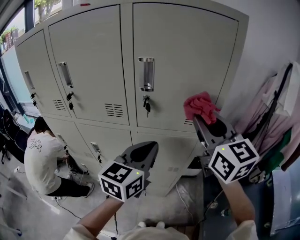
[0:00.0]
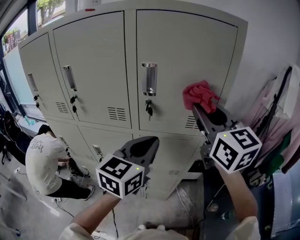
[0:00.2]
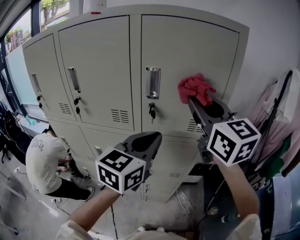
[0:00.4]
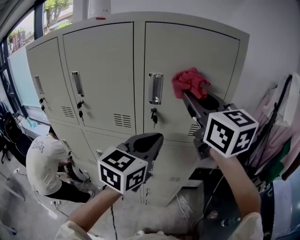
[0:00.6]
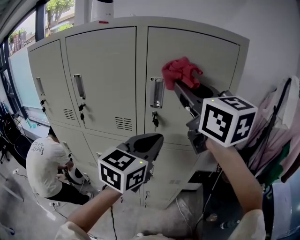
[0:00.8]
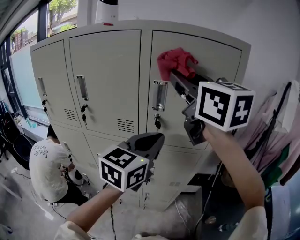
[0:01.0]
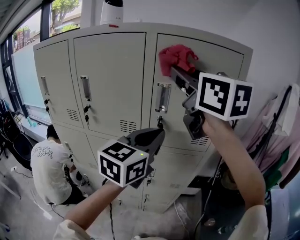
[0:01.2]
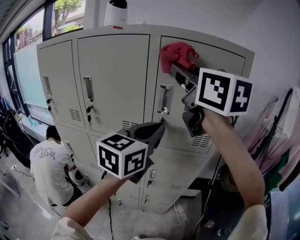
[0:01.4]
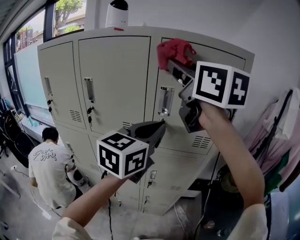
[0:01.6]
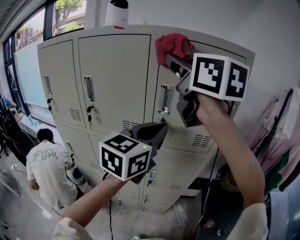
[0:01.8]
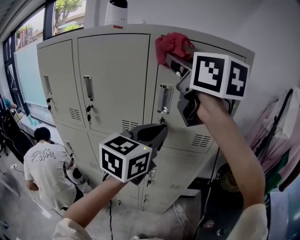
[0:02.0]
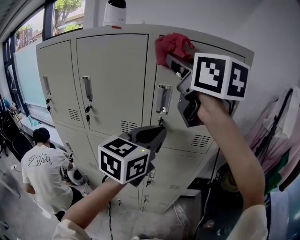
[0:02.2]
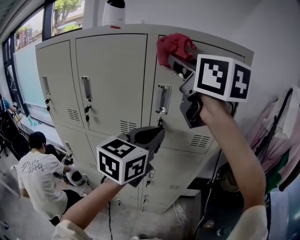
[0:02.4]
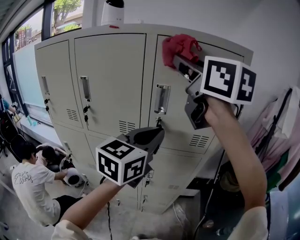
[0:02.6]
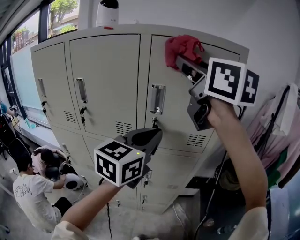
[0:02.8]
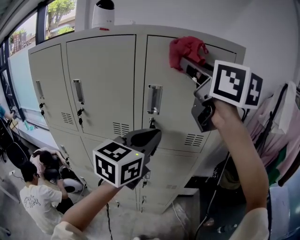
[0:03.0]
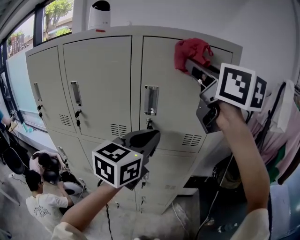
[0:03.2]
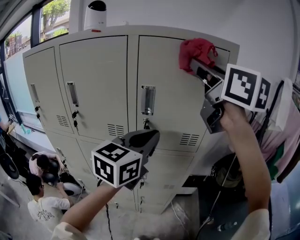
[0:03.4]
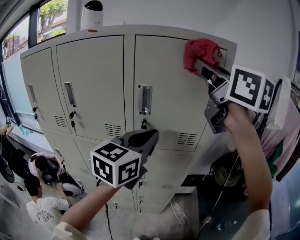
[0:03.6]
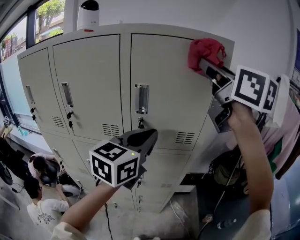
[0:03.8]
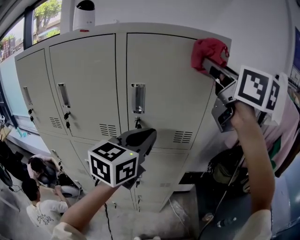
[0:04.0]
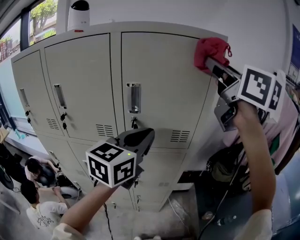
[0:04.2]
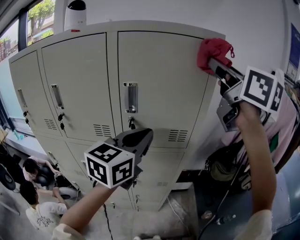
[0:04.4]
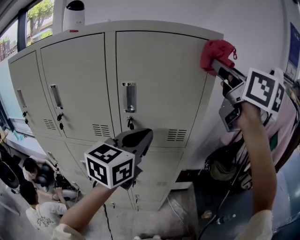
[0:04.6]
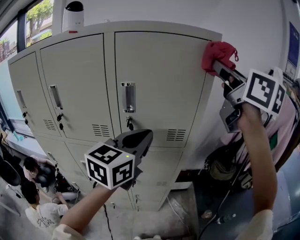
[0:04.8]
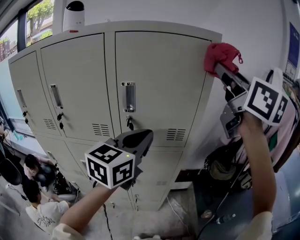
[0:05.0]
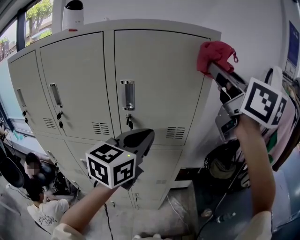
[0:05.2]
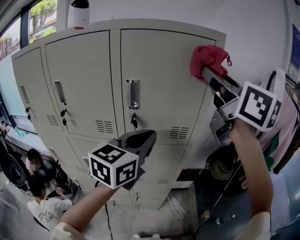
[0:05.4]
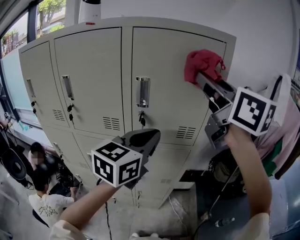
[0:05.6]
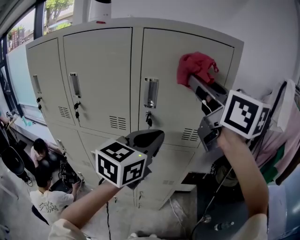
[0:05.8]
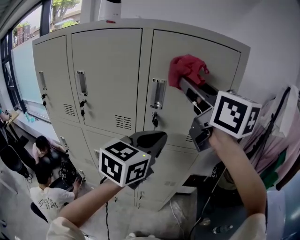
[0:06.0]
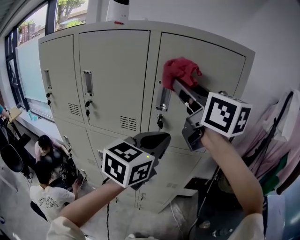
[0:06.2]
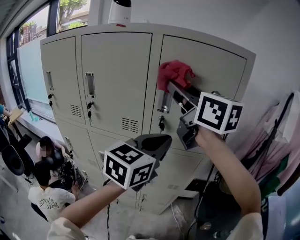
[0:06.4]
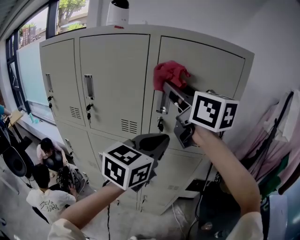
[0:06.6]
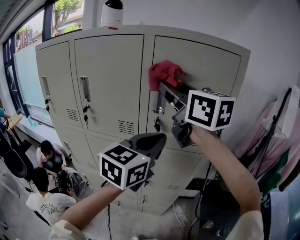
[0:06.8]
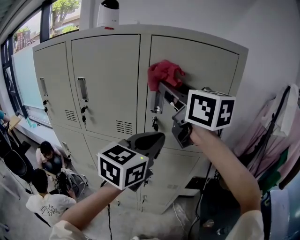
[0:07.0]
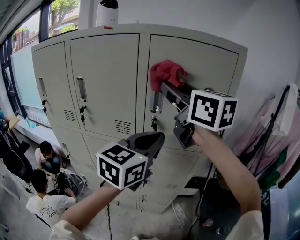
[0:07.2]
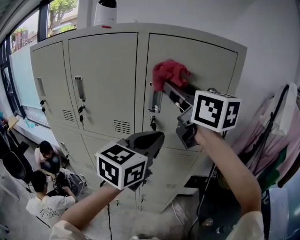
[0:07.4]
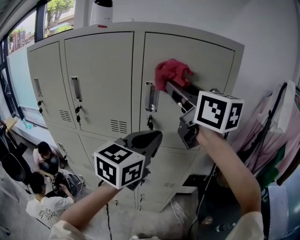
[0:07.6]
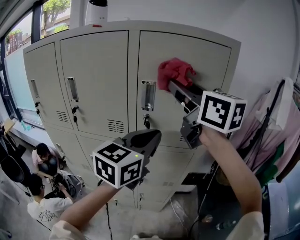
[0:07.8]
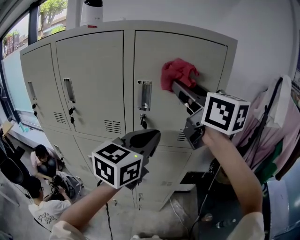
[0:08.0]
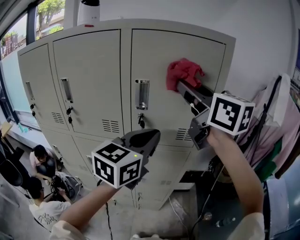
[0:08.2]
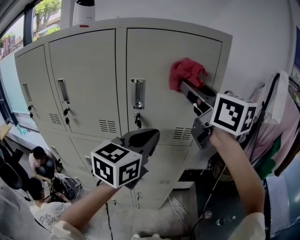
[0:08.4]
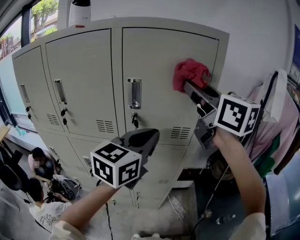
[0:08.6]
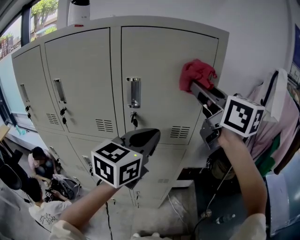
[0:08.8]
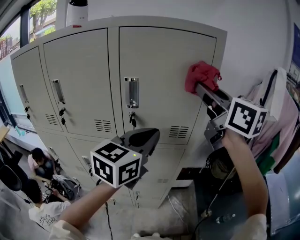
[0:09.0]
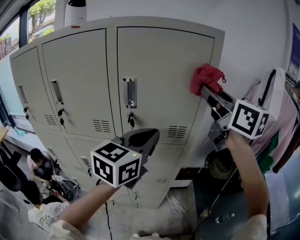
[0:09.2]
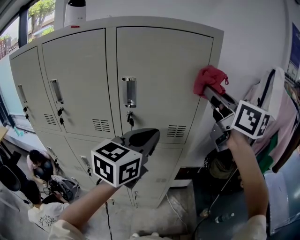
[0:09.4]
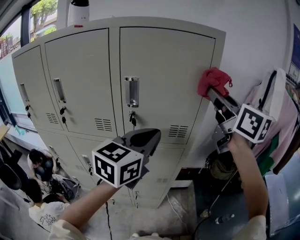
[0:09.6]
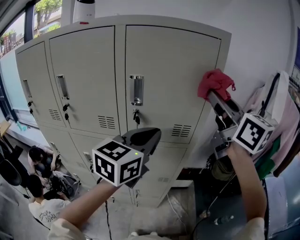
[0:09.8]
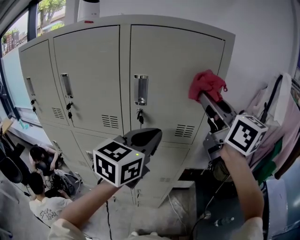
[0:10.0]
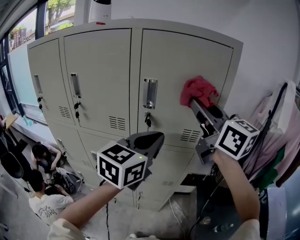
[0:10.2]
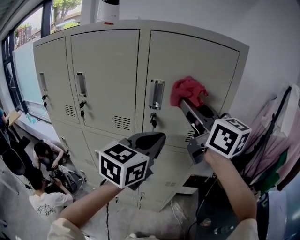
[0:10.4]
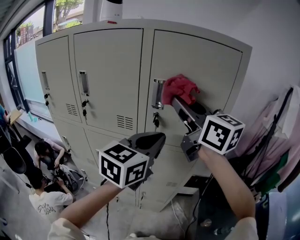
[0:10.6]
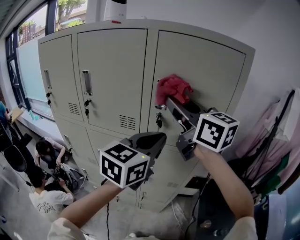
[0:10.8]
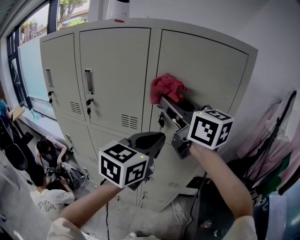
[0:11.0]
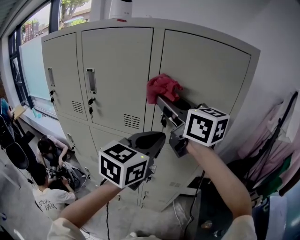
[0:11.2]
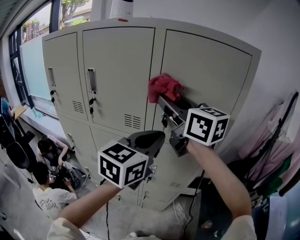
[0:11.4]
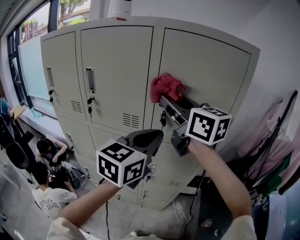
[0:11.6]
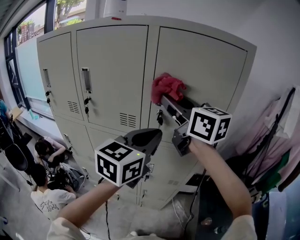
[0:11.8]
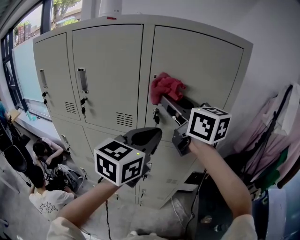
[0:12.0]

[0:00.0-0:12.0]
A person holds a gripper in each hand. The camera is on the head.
0:00.0 to 0:01.6: The left gripper is displaced upward by some 15 cm. Meanwhile the right gripper moves upward and to the left, approximately 25 cm.
0:01.6 to 0:03.0: The right gripper moves to the right, some 5 cm.
0:03.0 to 0:04.4: The right gripper is displaced to the right by roughly 15 cm.
0:04.4 to 0:06.0: The right gripper heads to the left, covering some 15 cm, and swivels approximately 20 degrees.
0:07.6 to 0:09.0: The right gripper goes roughly 15 cm to the right.
0:09.0 to 0:10.4: The right gripper travels to the left by roughly 10 cm.
0:10.4 to 0:12.0: The right gripper goes approximately 5 cm to the left.

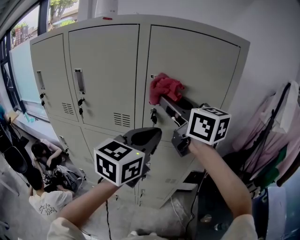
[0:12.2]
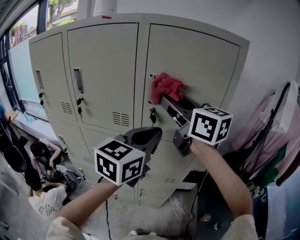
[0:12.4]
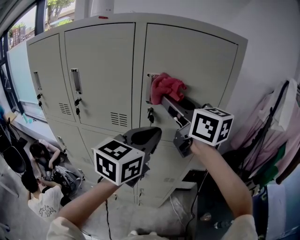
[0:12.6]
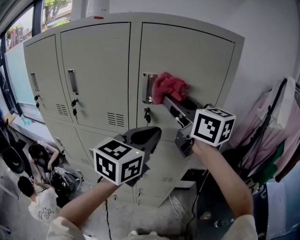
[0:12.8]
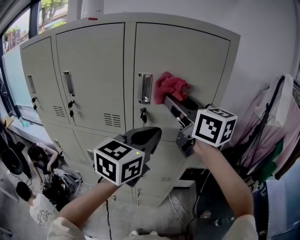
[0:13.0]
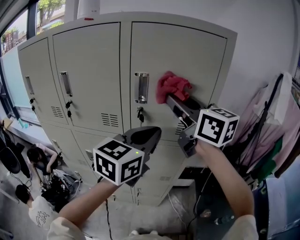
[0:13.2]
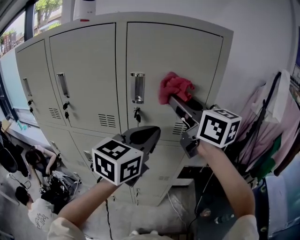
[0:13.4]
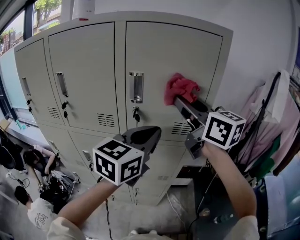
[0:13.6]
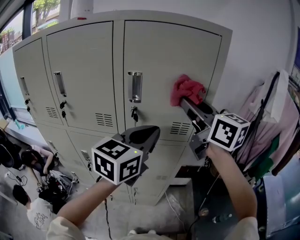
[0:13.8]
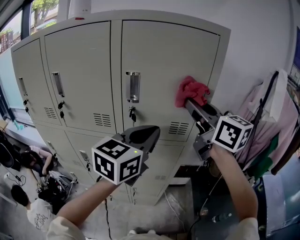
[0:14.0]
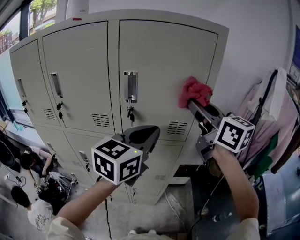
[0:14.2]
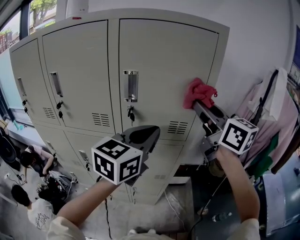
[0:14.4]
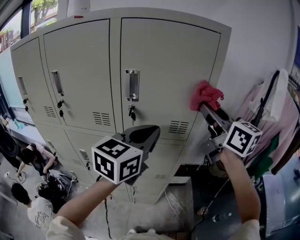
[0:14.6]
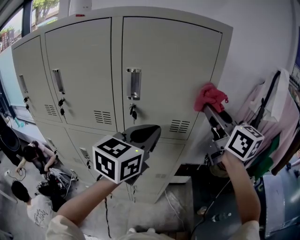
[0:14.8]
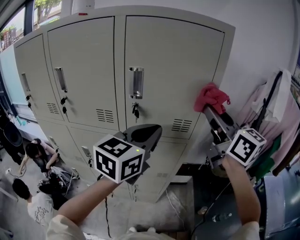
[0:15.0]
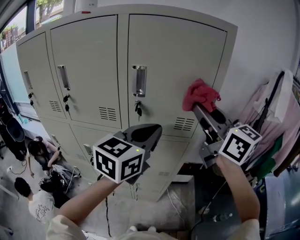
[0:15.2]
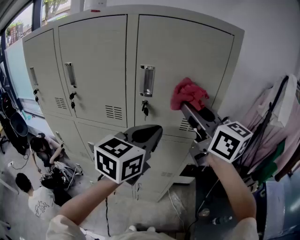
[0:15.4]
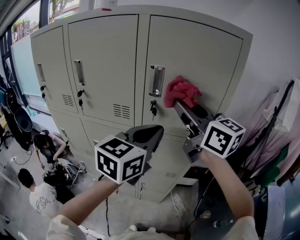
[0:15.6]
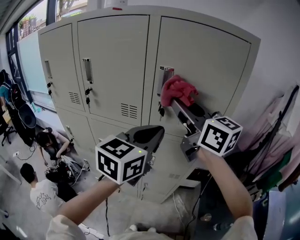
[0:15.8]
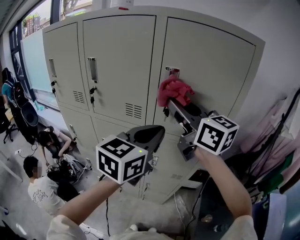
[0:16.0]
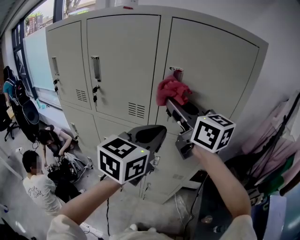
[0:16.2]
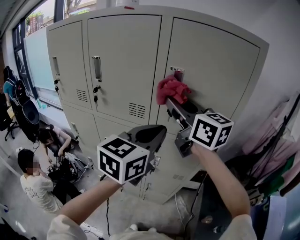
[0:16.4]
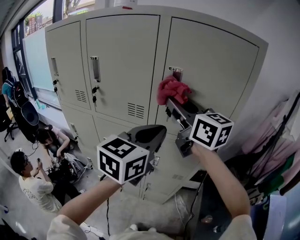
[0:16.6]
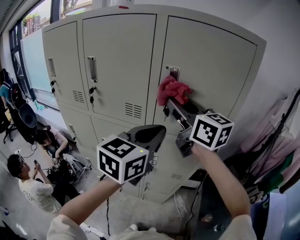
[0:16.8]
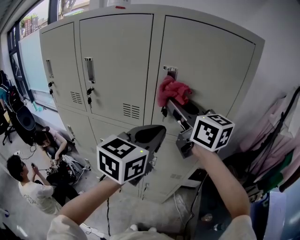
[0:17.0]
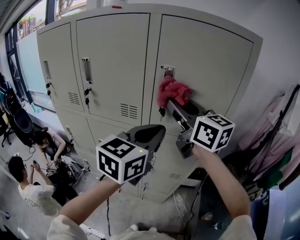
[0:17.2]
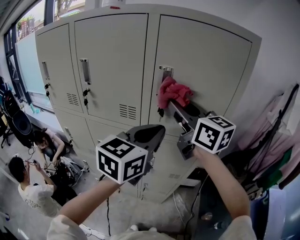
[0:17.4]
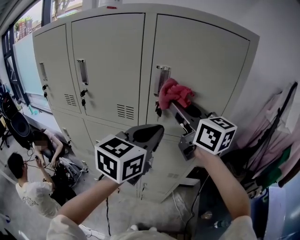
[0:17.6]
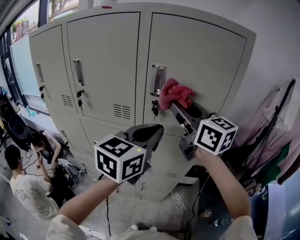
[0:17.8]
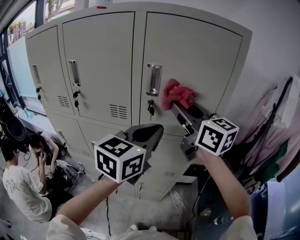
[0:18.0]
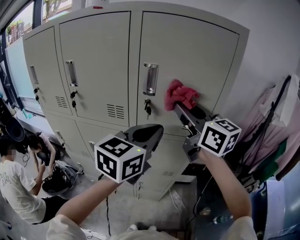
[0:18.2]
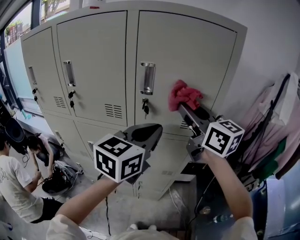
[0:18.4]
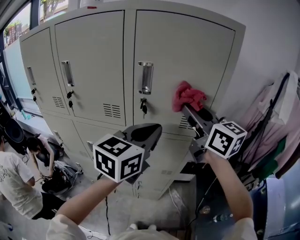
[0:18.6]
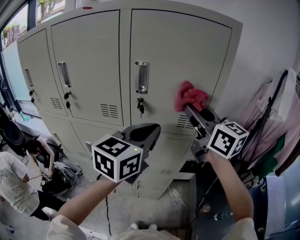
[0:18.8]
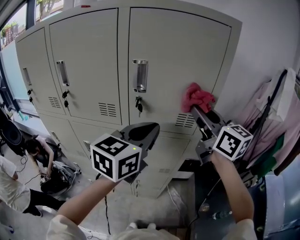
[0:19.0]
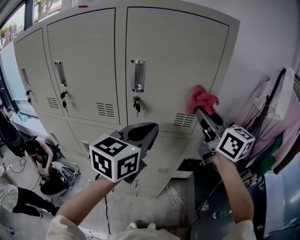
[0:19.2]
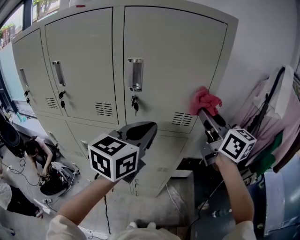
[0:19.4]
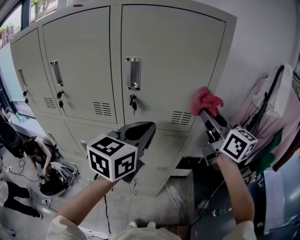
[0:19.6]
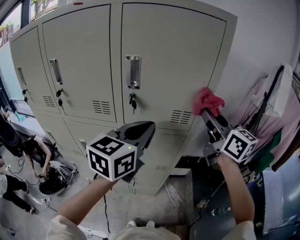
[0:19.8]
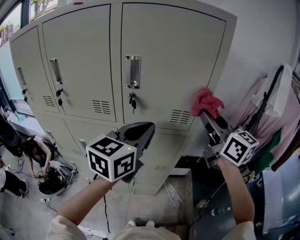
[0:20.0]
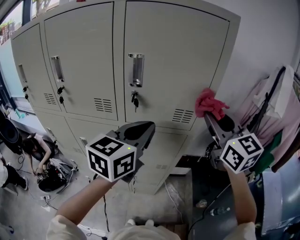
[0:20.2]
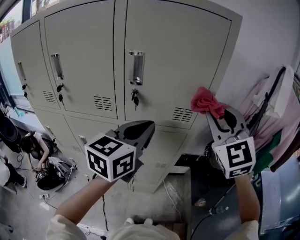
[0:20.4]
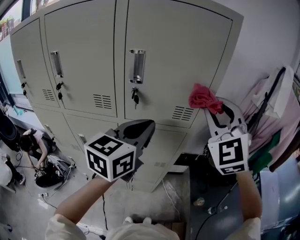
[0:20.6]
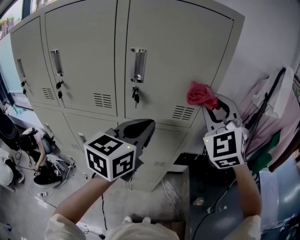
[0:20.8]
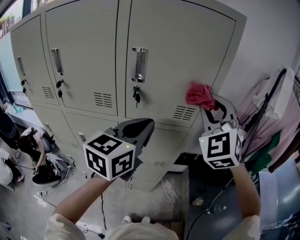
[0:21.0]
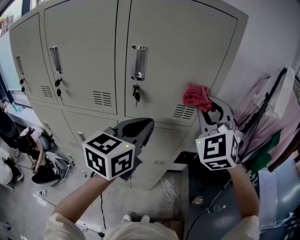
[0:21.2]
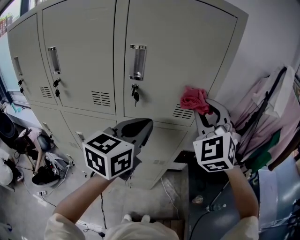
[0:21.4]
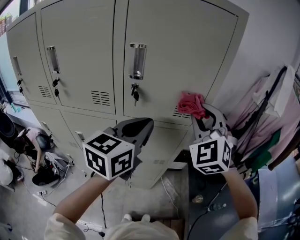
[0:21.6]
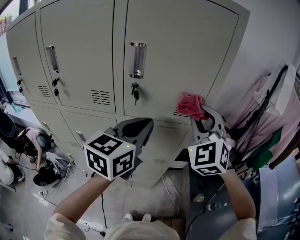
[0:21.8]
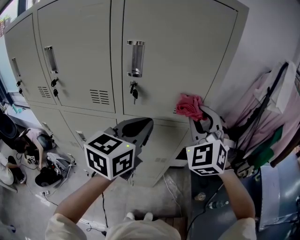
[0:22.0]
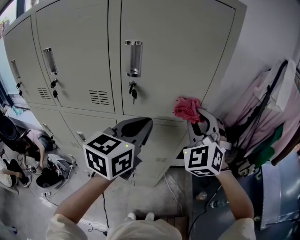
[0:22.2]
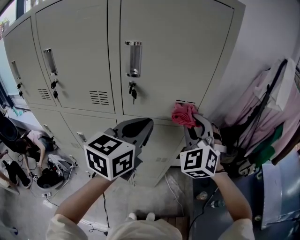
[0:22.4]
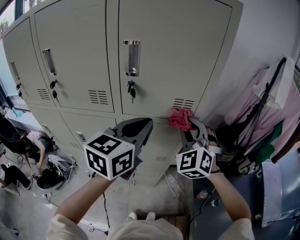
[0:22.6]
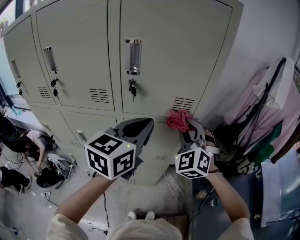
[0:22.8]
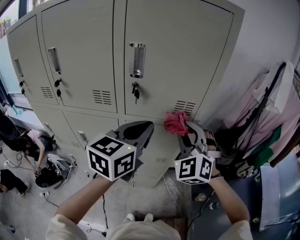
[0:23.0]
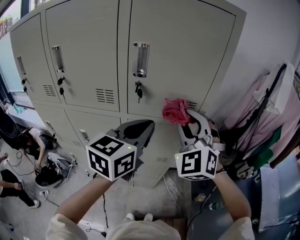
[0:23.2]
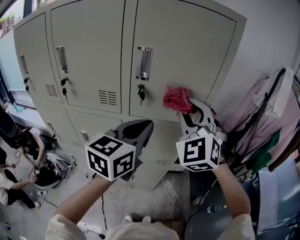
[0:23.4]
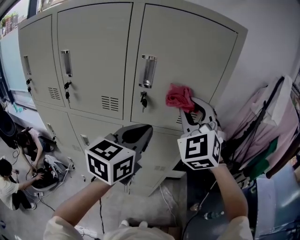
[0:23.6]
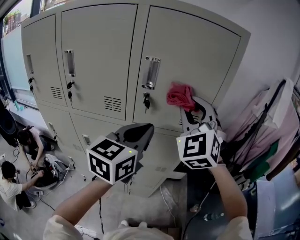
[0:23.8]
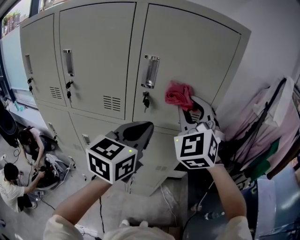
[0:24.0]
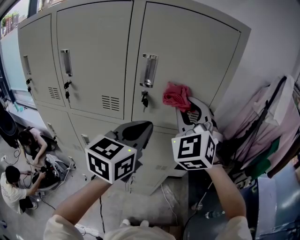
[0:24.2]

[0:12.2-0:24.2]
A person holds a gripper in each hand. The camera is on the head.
0:12.2 to 0:13.8: The right gripper heads to the right, covering approximately 10 cm. Meanwhile the left gripper is displaced to the right by about 5 cm.
0:13.8 to 0:15.2: The right gripper moves roughly 10 cm to the right and comes back.
0:15.2 to 0:16.6: The left gripper heads to the left, covering approximately 5 cm. The right gripper is displaced to the left by about 15 cm.
0:16.6 to 0:18.2: The right gripper heads to the right, covering about 10 cm; the left gripper moves about 5 cm.
0:18.2 to 0:19.8: The right gripper goes about 15 cm to the right.
0:19.8 to 0:21.2: The right gripper ends up about 5 cm from where it was, and twists approximately 70 degrees counterclockwise, seen from behind.
0:21.2 to 0:22.6: The right gripper is displaced downward by some 15 cm.
0:22.6 to 0:24.2: The right gripper travels upward and to the left by approximately 15 cm.
